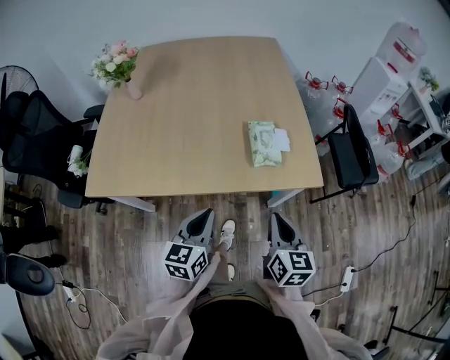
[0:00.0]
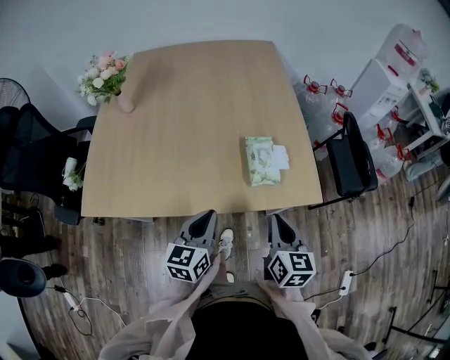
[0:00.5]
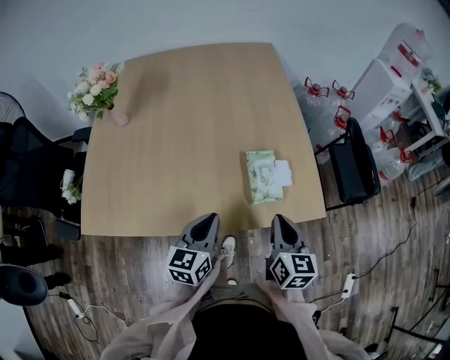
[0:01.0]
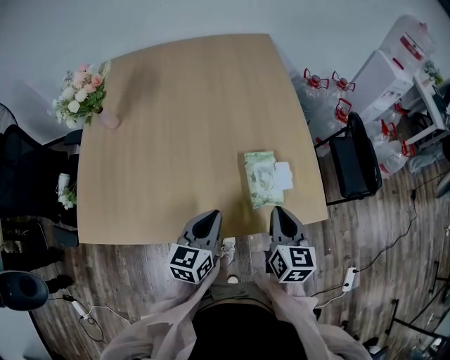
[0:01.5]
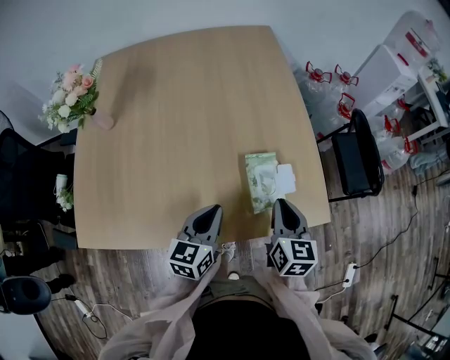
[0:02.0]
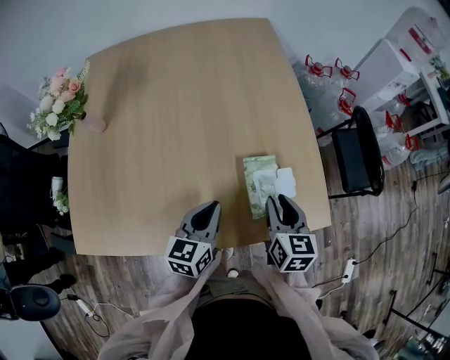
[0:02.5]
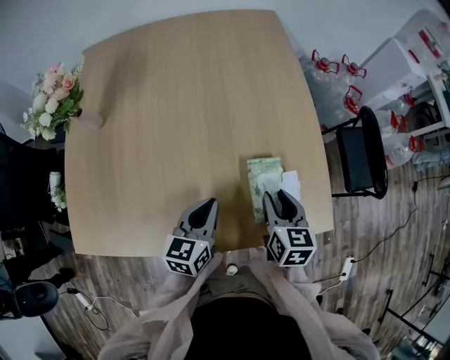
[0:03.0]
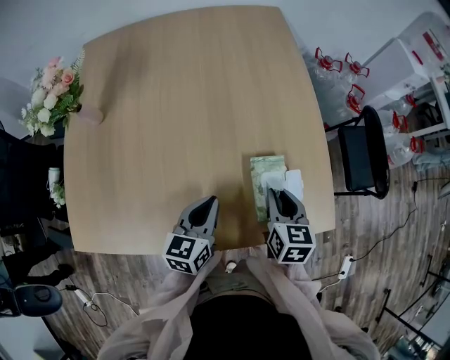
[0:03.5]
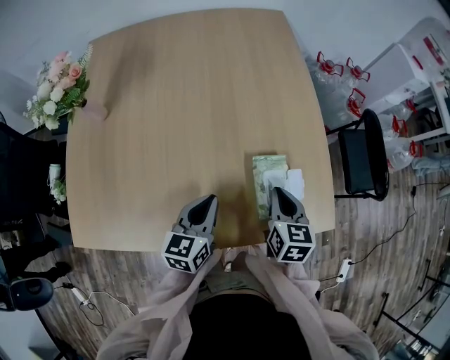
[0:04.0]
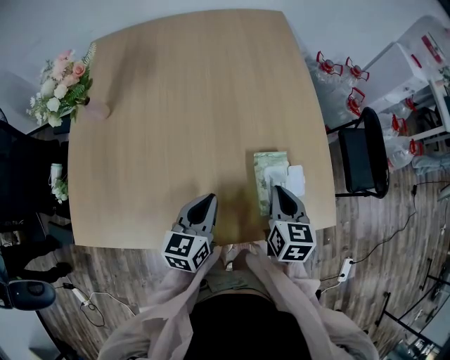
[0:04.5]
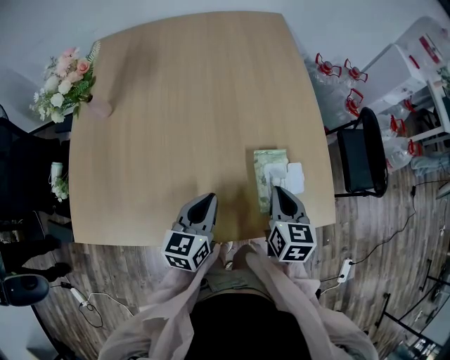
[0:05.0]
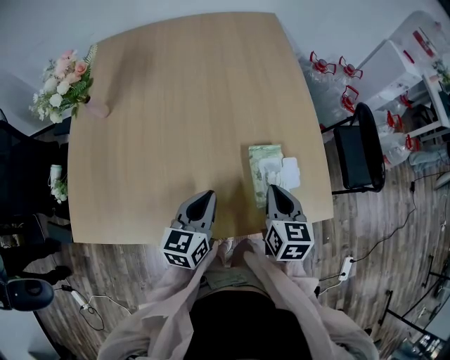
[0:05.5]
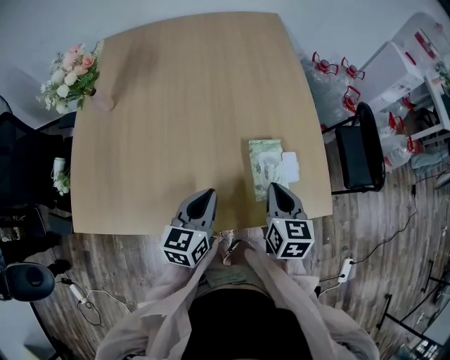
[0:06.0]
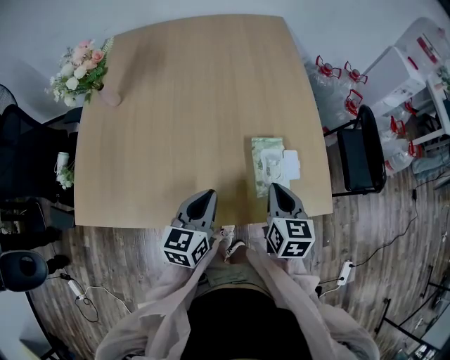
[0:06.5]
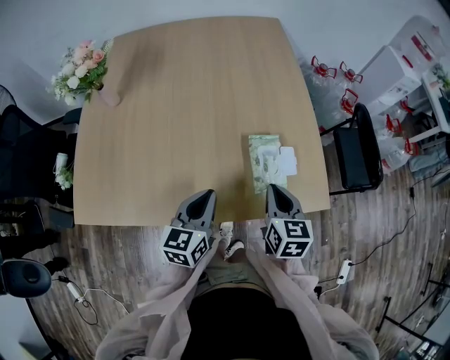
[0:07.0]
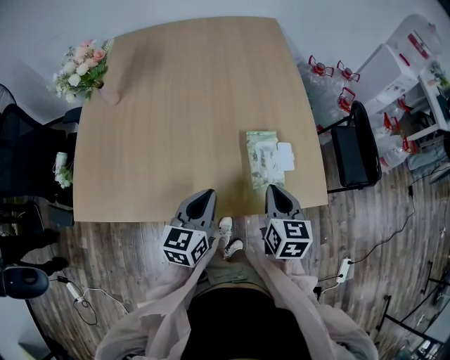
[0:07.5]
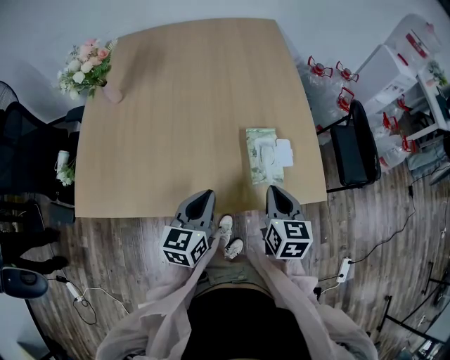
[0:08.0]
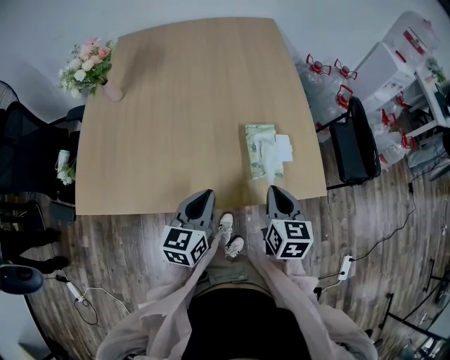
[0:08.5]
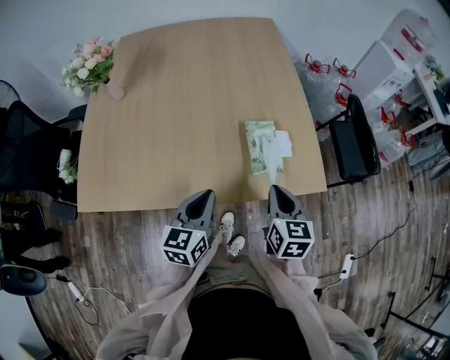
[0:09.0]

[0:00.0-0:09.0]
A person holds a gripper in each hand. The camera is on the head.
0:00.0 to 0:02.0: The two grippers go about 20 cm forward.
0:02.0 to 0:04.5: The right gripper moves roughly 5 cm, and opens, then closes again. Meanwhile the left gripper changes place by some 5 cm.
0:04.5 to 0:07.0: Both grippers move backward, roughly 5 cm.
0:07.0 to 0:09.0: The grippers both shift backward by approximately 5 cm.

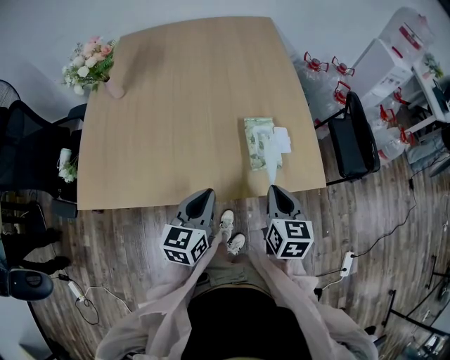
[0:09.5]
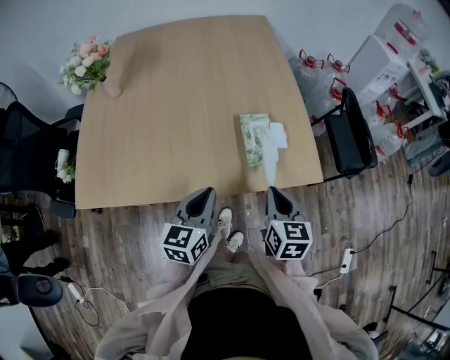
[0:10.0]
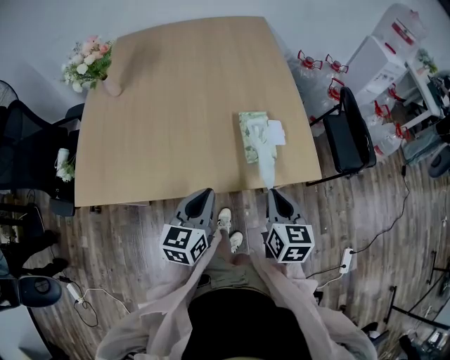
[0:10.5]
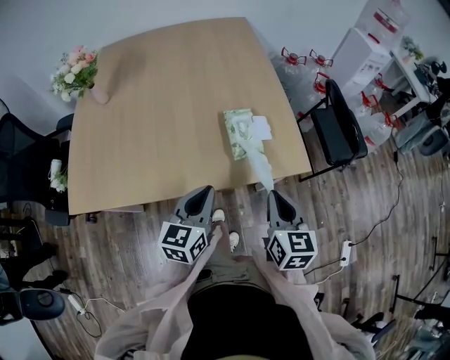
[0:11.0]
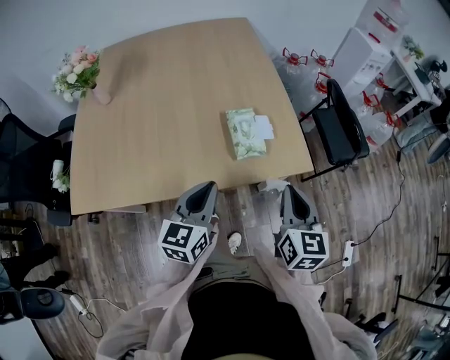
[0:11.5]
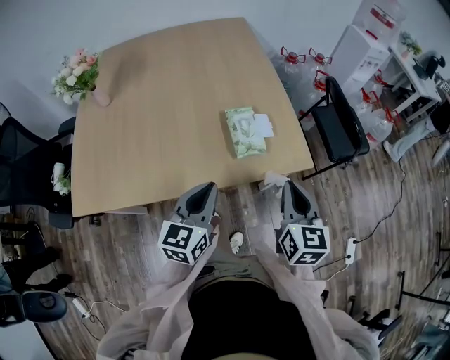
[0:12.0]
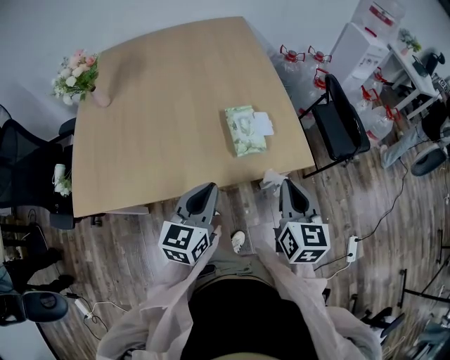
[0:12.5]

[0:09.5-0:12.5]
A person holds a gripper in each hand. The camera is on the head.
0:09.5 to 0:11.0: The right gripper shifts roughly 5 cm backward; the left gripper moves about 5 cm.
0:11.0 to 0:12.5: The grippers make only small movements.

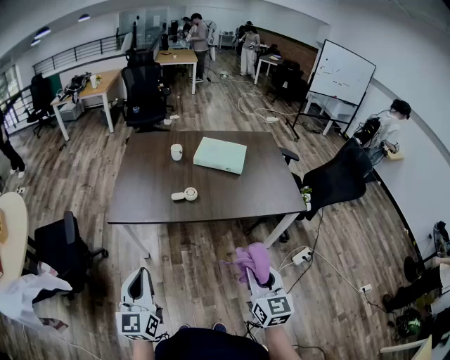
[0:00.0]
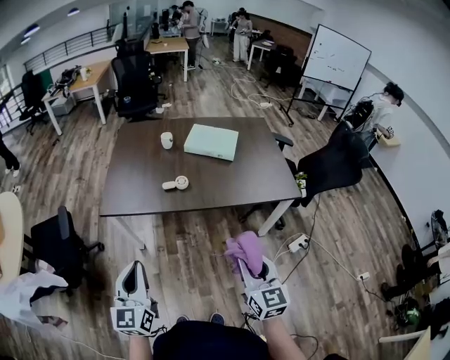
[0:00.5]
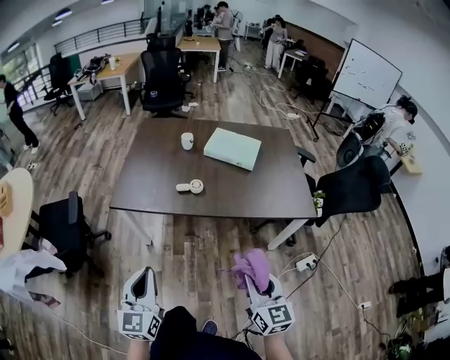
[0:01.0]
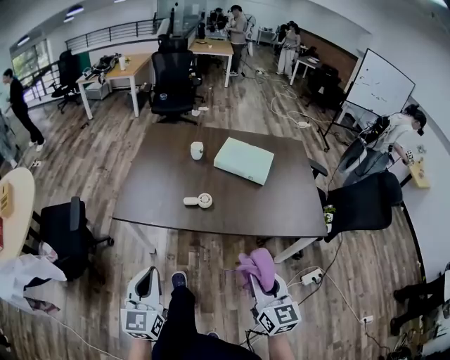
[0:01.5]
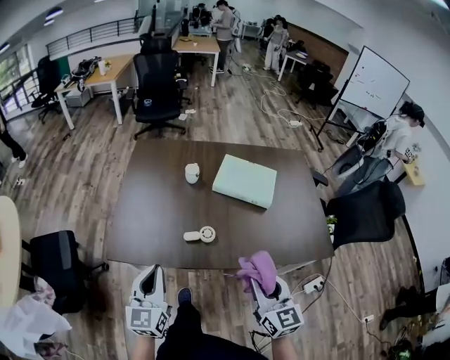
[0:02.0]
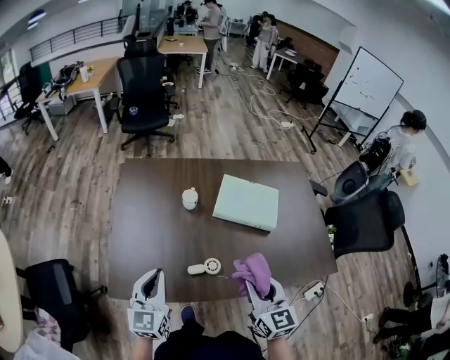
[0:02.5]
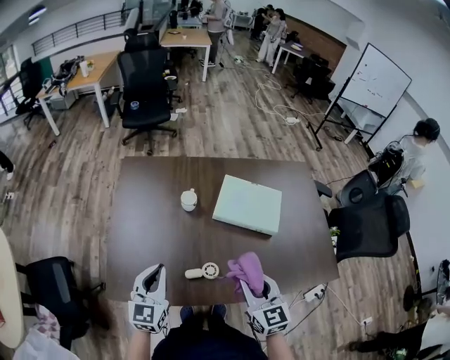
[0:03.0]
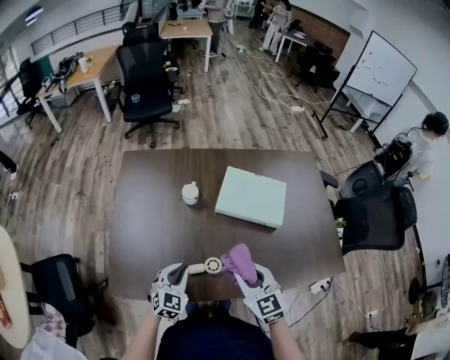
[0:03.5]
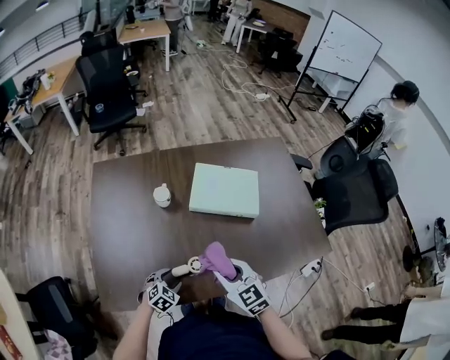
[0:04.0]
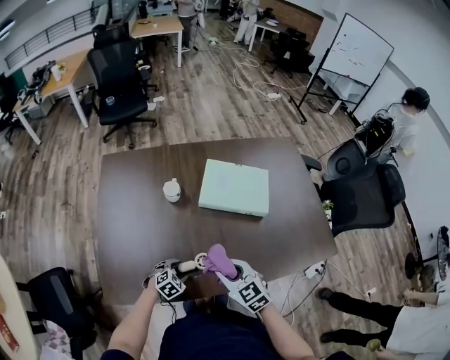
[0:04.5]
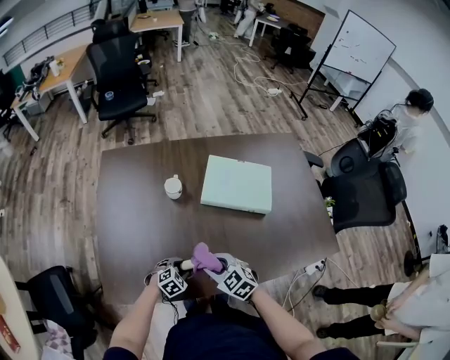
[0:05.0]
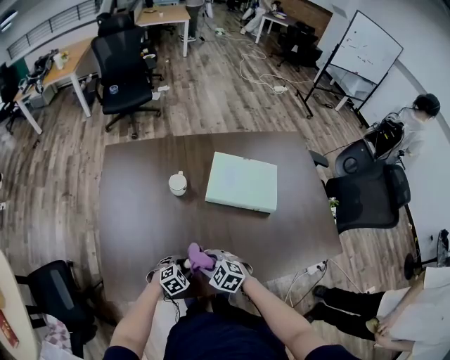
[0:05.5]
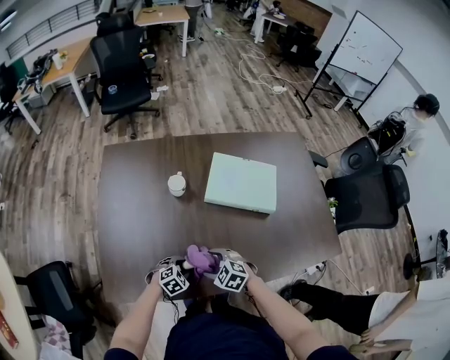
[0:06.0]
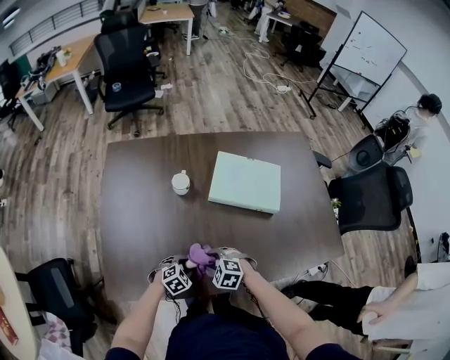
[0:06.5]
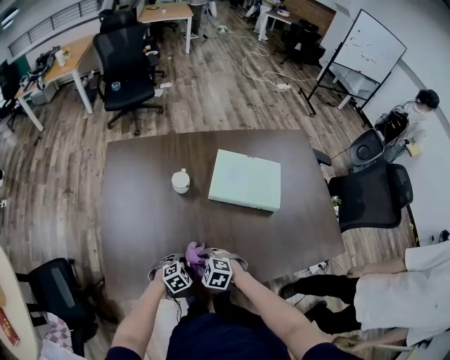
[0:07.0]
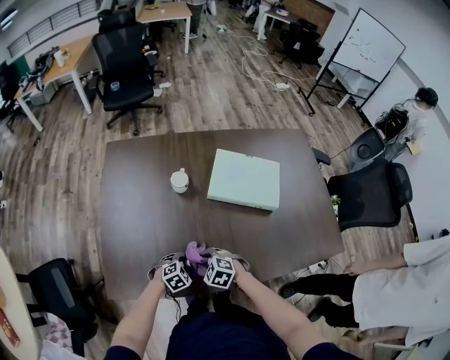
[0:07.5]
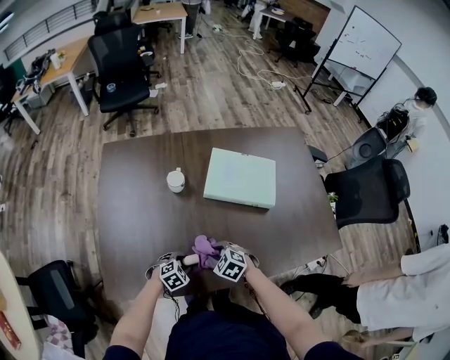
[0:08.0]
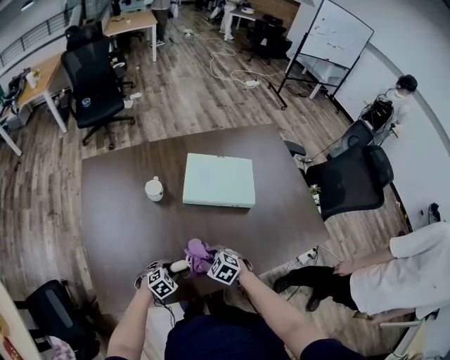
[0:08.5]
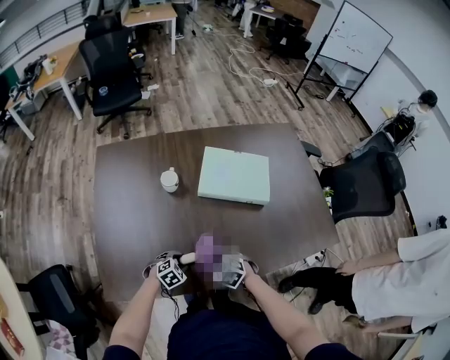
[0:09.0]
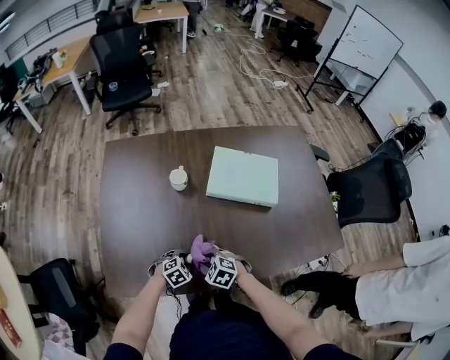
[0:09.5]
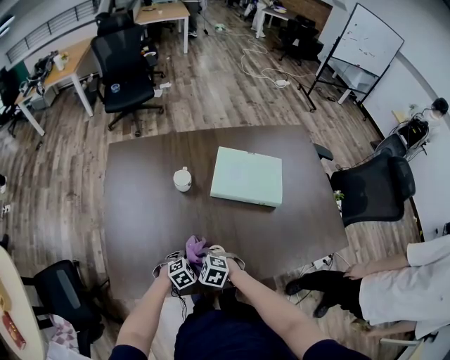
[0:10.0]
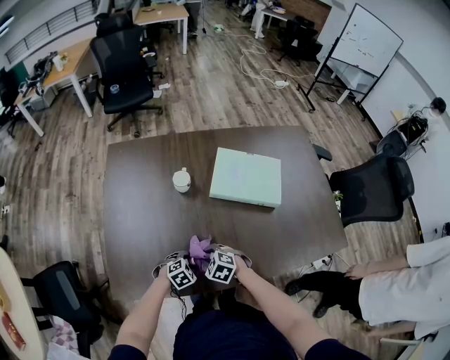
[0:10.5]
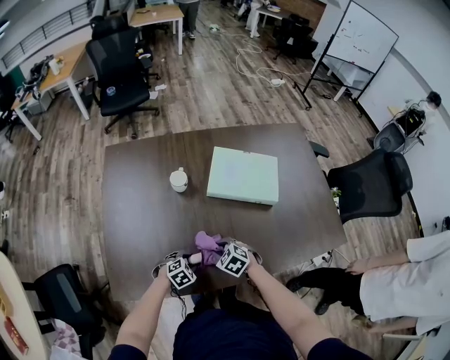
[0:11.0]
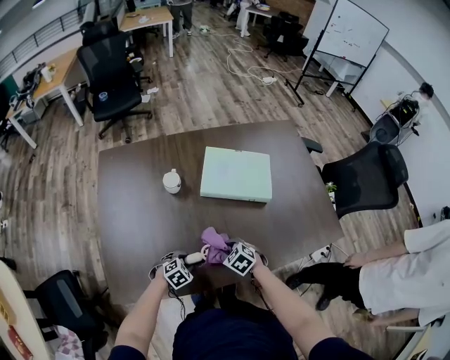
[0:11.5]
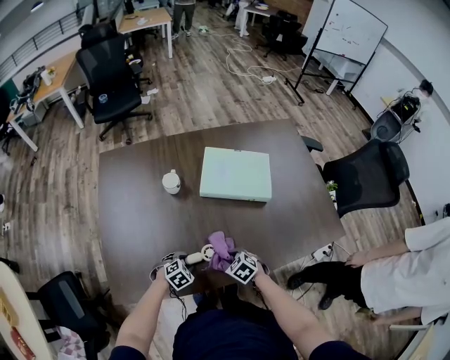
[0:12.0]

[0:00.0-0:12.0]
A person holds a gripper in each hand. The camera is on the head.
0:00.0 to 0:02.0: Both grippers travel together forward, some 30 cm.
0:02.0 to 0:04.0: The left gripper is displaced downward and forward by about 35 cm, angles its fingers downward, by approximately 50 degrees, and opens up. Meanwhile the right gripper shifts some 25 cm forward and downward, and swivels some 20 degrees.
0:04.0 to 0:06.0: The left gripper shifts some 5 cm downward, while the right gripper shifts about 20 cm downward, turns by some 40 degrees, and opens up.
0:06.0 to 0:08.0: The right gripper closes up.
0:08.0 to 0:10.0: The right gripper changes place by about 10 cm.
0:10.0 to 0:12.0: The right gripper ends up approximately 15 cm from where it was, and rotates some 30 degrees.

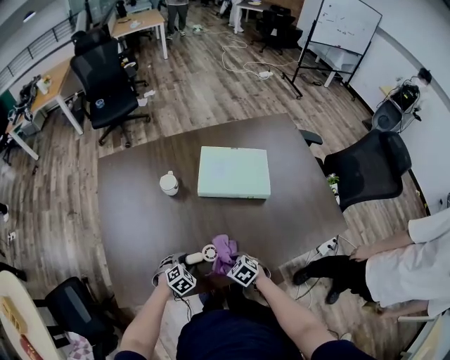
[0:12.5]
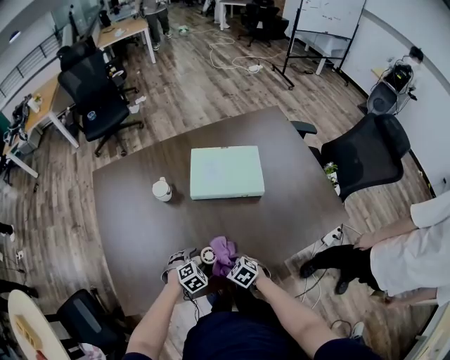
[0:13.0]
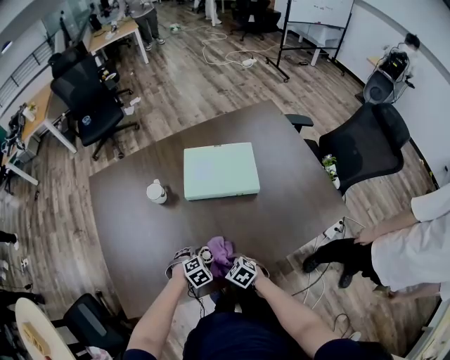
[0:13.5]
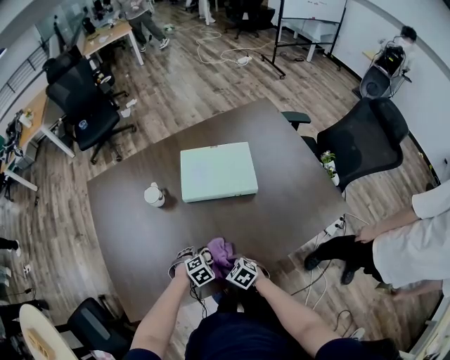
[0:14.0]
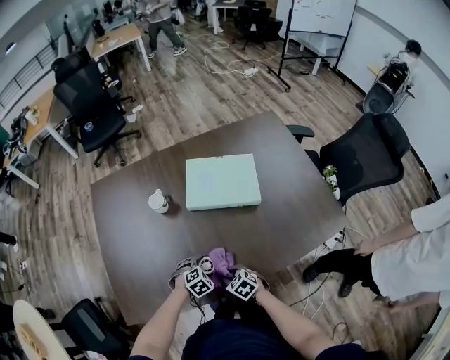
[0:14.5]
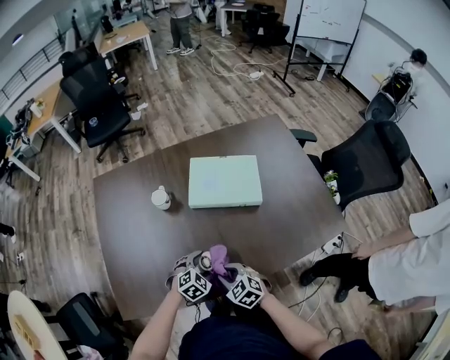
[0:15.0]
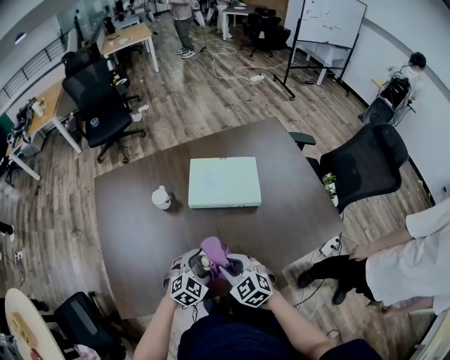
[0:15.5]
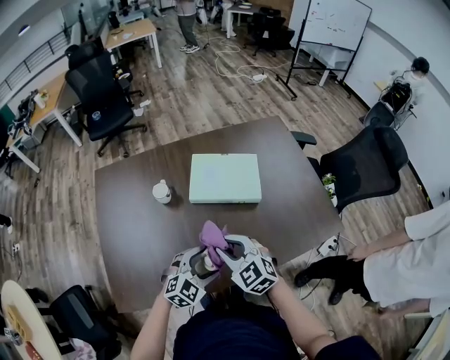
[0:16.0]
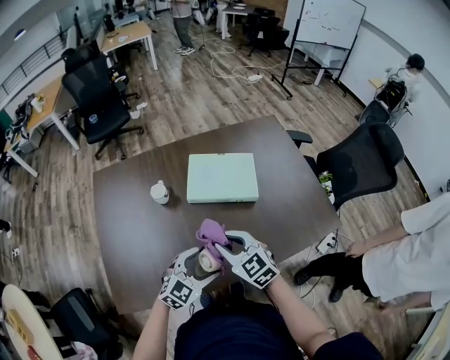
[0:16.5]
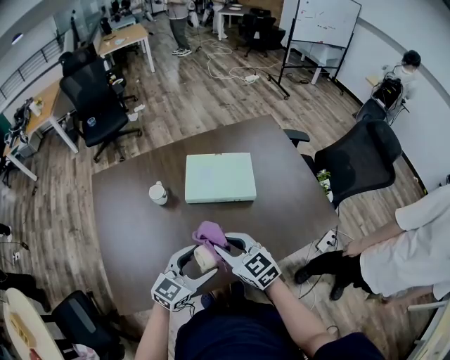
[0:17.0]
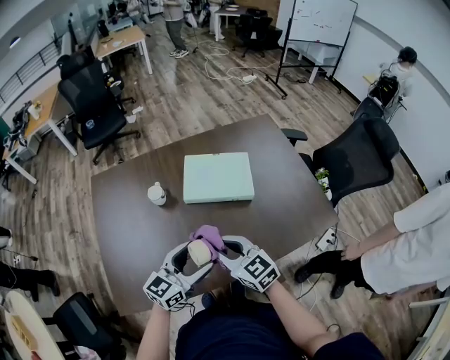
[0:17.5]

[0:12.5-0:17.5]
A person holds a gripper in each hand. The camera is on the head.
0:12.5 to 0:15.0: The right gripper heads upward, covering about 10 cm; the left gripper ends up approximately 15 cm from where it was, and opens its fingers.
0:15.0 to 0:17.5: Both grippers move upward, about 20 cm. The left gripper angles its fingers upward, by roughly 50 degrees; the right gripper rotates some 30 degrees.
